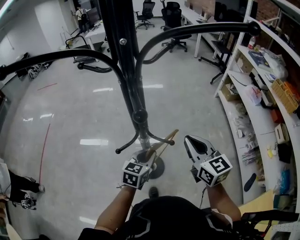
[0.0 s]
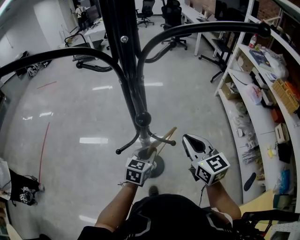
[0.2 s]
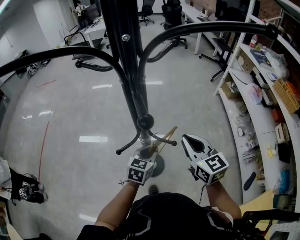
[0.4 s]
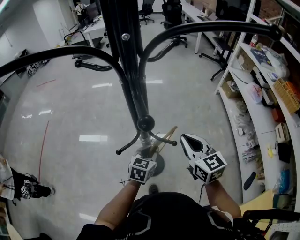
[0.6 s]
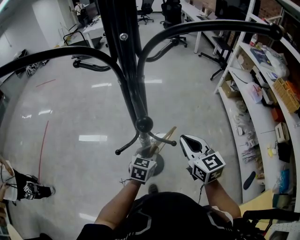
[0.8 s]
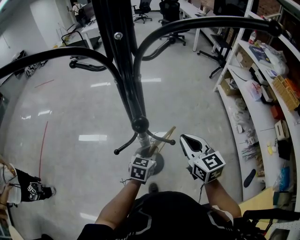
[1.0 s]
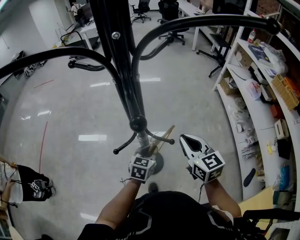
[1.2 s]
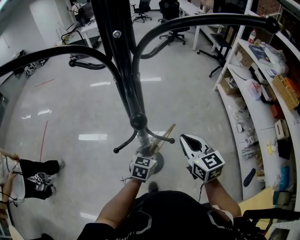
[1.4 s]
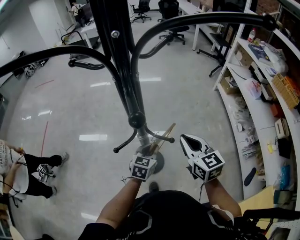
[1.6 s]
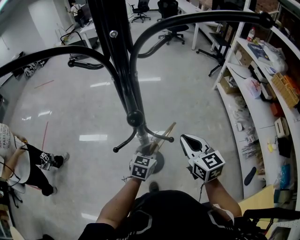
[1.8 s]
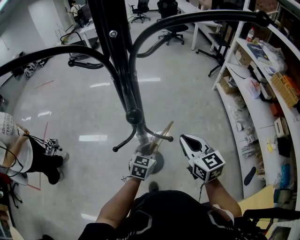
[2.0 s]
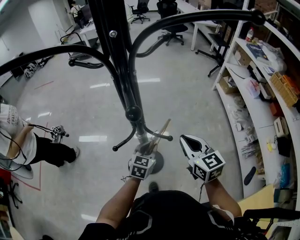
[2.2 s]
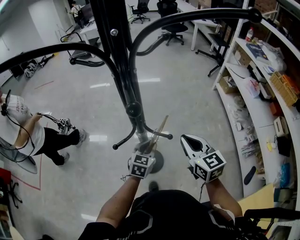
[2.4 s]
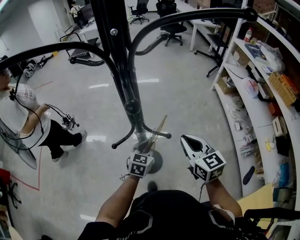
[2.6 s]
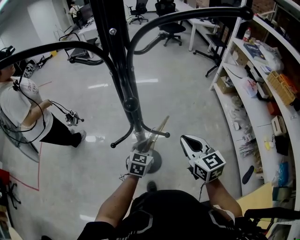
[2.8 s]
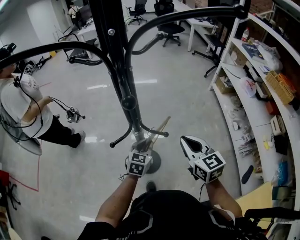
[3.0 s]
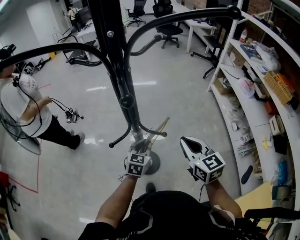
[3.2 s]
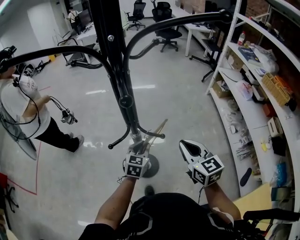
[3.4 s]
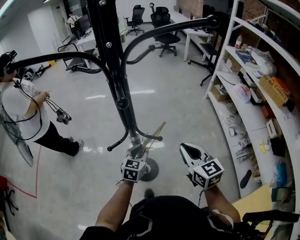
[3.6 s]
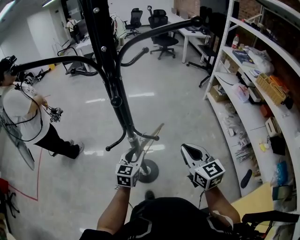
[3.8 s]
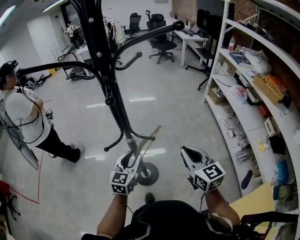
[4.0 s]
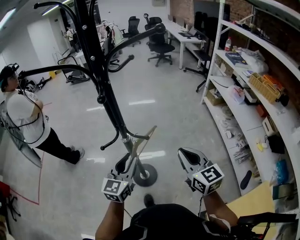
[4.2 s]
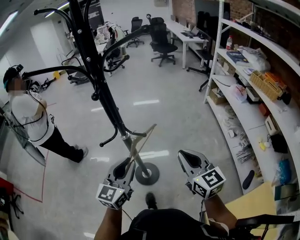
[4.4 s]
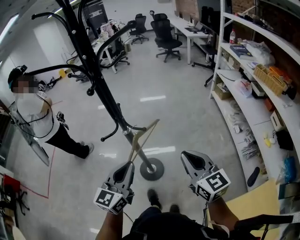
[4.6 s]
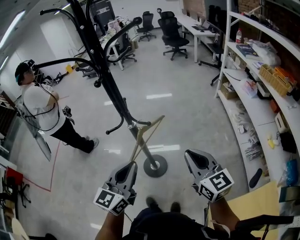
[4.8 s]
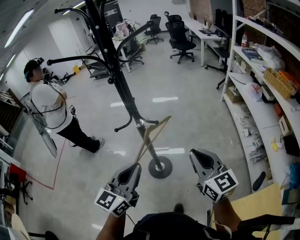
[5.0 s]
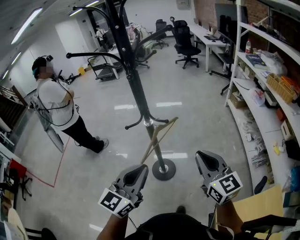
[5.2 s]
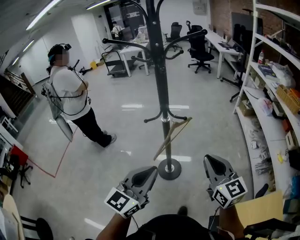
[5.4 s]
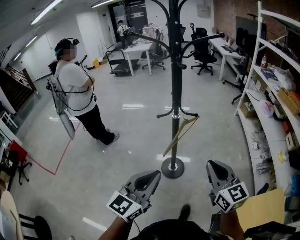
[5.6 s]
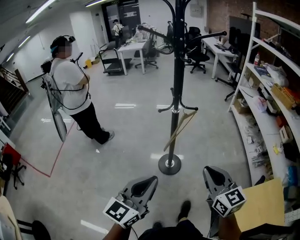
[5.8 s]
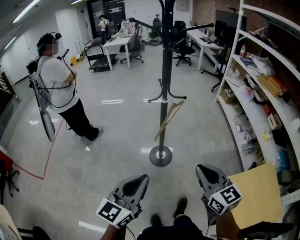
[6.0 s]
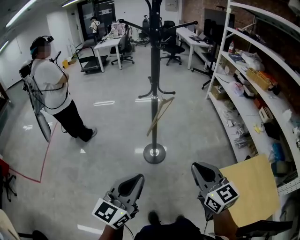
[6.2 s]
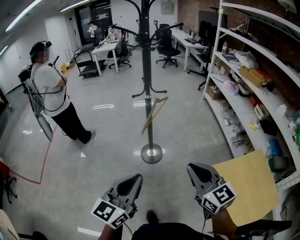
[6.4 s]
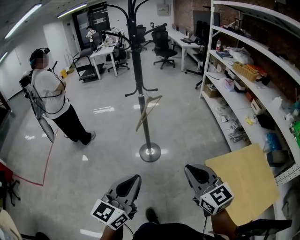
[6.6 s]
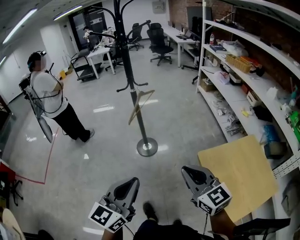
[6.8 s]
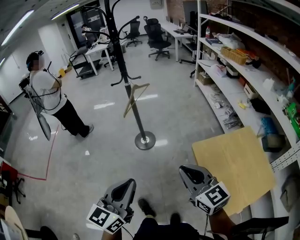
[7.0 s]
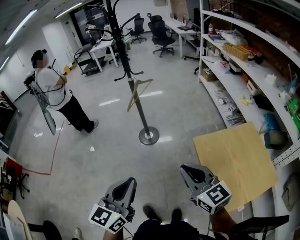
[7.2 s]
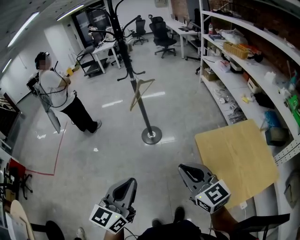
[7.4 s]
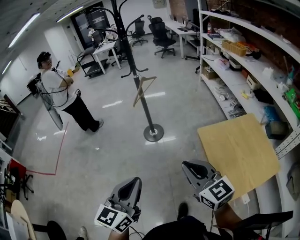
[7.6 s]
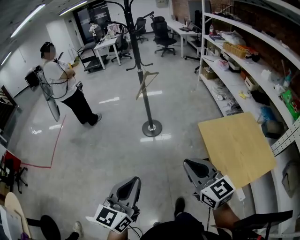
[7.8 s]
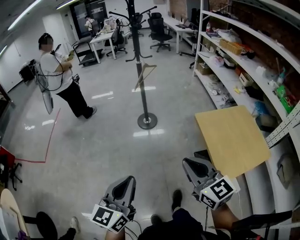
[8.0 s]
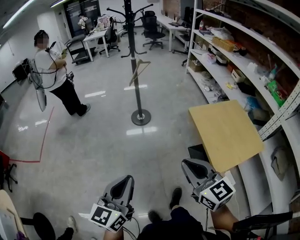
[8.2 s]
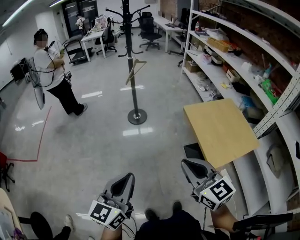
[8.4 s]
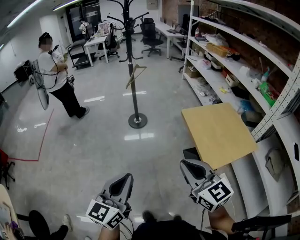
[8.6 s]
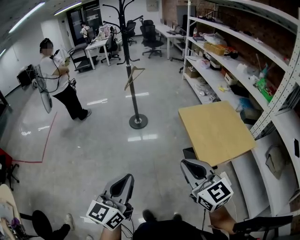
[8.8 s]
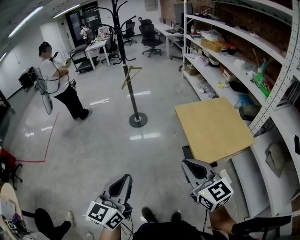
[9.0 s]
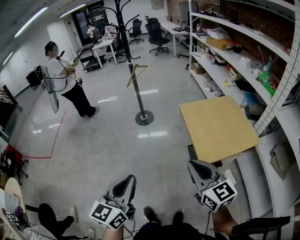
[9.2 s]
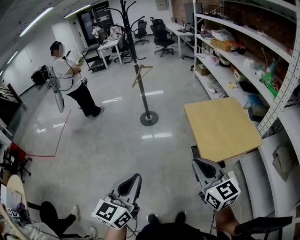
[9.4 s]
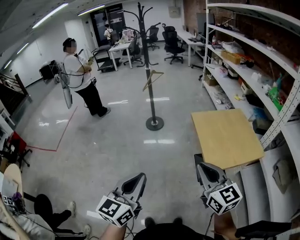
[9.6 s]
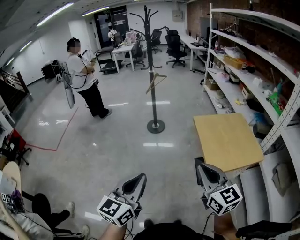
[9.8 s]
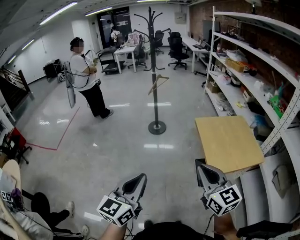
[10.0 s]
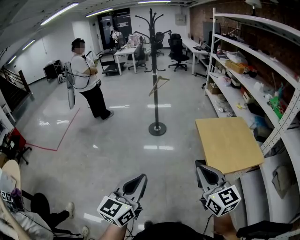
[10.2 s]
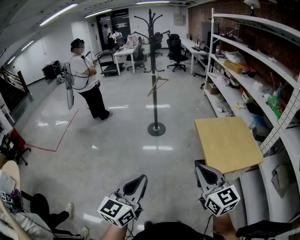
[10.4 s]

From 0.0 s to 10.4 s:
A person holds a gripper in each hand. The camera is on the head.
From 0.0 s to 1.4 s: The right gripper shifts by roughly 5 cm. The left gripper shifts some 5 cm downward.
From 1.4 s to 3.0 s: The grippers stay close to where they were, moving slightly.
From 3.0 s to 4.4 s: The left gripper heads upward and backward, covering some 25 cm, and turns by approximately 30 degrees; the right gripper heads backward, to the right and upward, covering some 15 cm.
From 4.4 s to 6.0 s: Both grippers travel together backward and to the left, about 35 cm.
From 6.0 s to 7.4 s: Both grippers travel together backward and to the right, approximately 35 cm.
From 7.4 s to 9.0 s: Both grippers move backward, some 30 cm.
From 9.0 s to 10.4 s: The right gripper changes place by about 5 cm. Meanwhile the left gripper shifts roughly 5 cm backward.

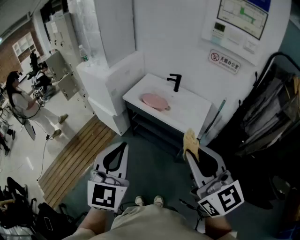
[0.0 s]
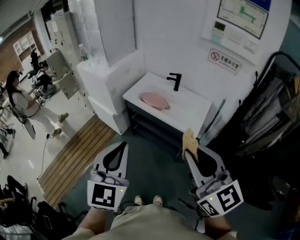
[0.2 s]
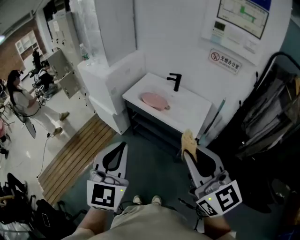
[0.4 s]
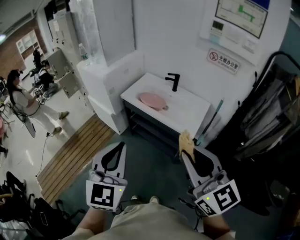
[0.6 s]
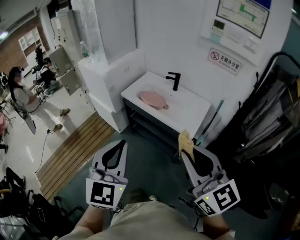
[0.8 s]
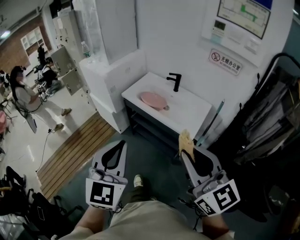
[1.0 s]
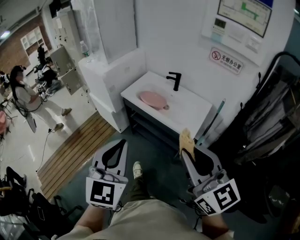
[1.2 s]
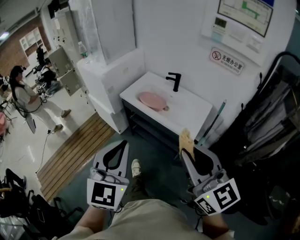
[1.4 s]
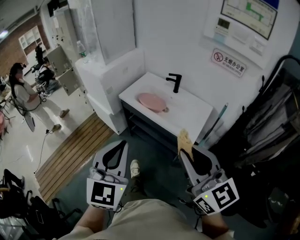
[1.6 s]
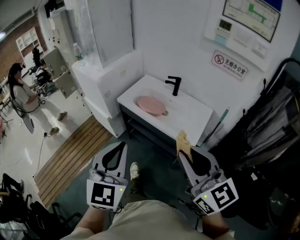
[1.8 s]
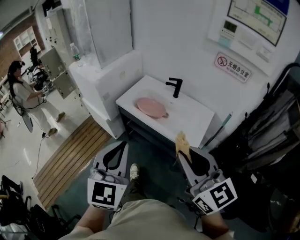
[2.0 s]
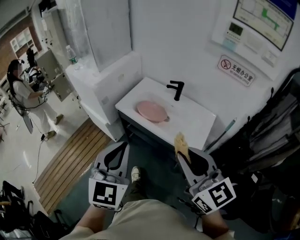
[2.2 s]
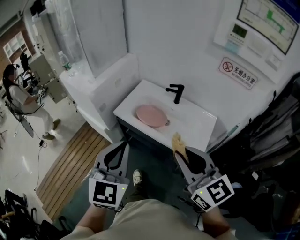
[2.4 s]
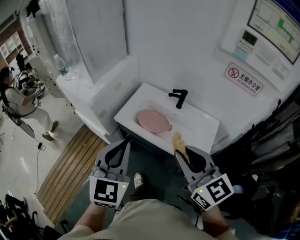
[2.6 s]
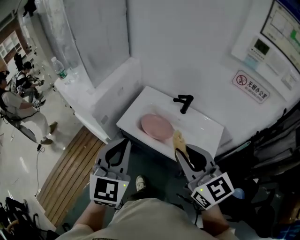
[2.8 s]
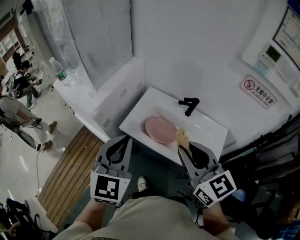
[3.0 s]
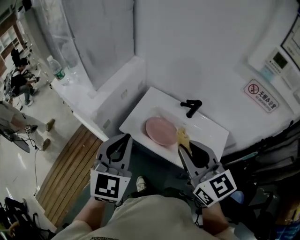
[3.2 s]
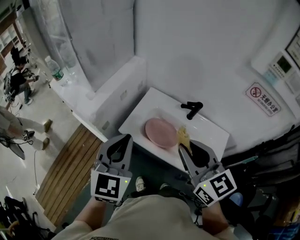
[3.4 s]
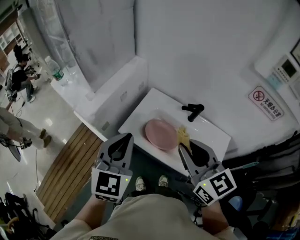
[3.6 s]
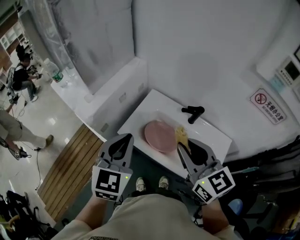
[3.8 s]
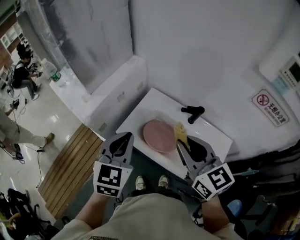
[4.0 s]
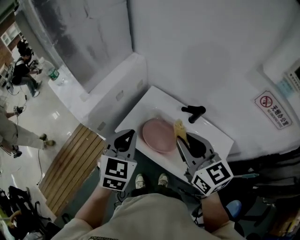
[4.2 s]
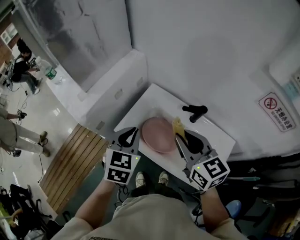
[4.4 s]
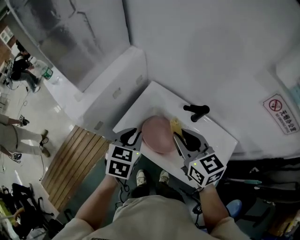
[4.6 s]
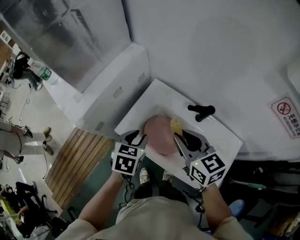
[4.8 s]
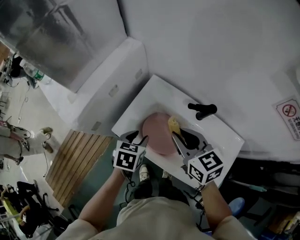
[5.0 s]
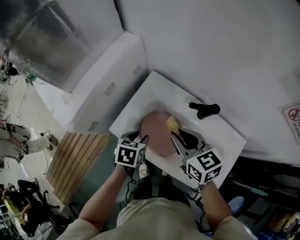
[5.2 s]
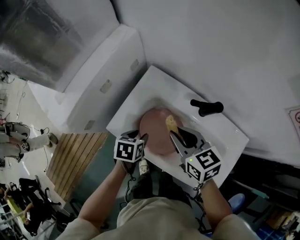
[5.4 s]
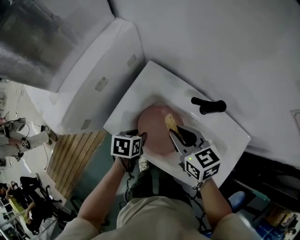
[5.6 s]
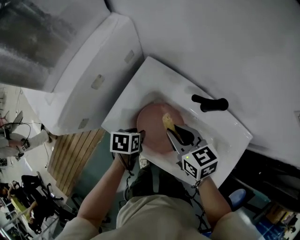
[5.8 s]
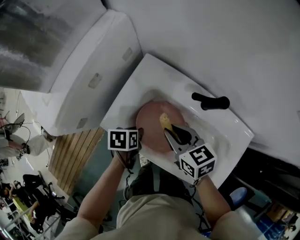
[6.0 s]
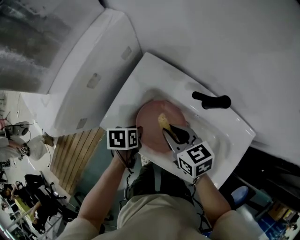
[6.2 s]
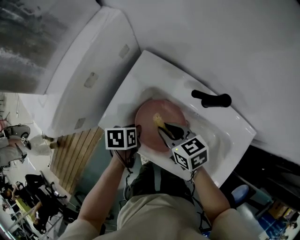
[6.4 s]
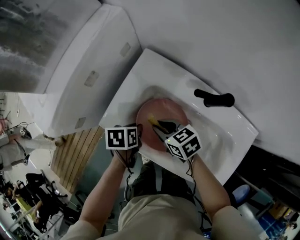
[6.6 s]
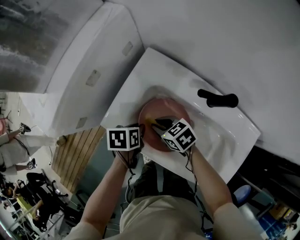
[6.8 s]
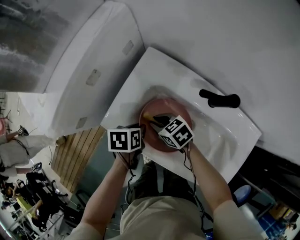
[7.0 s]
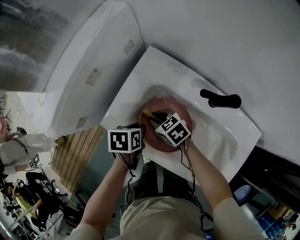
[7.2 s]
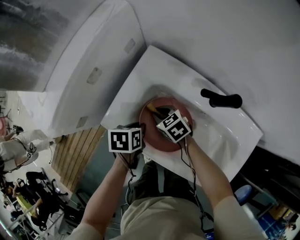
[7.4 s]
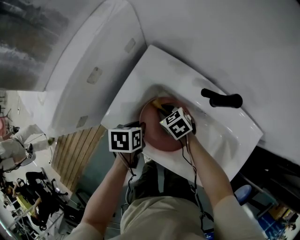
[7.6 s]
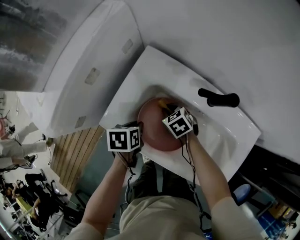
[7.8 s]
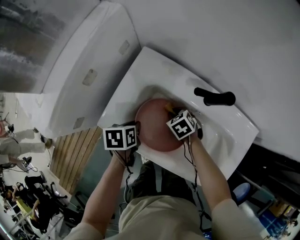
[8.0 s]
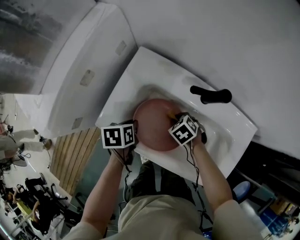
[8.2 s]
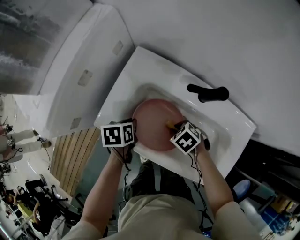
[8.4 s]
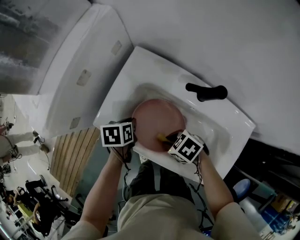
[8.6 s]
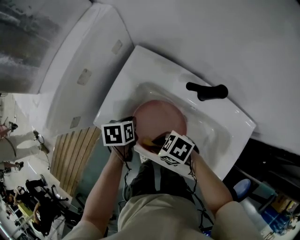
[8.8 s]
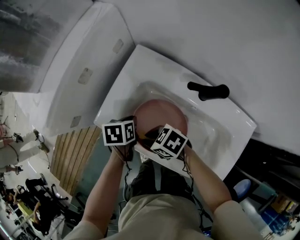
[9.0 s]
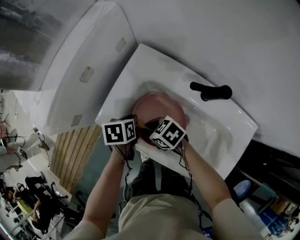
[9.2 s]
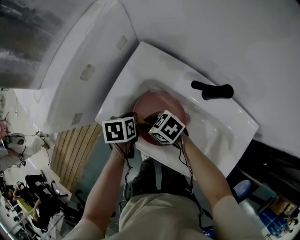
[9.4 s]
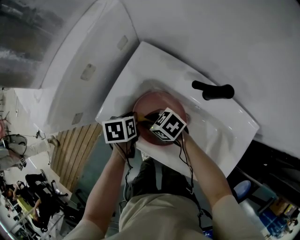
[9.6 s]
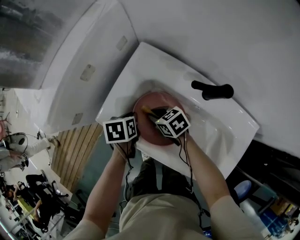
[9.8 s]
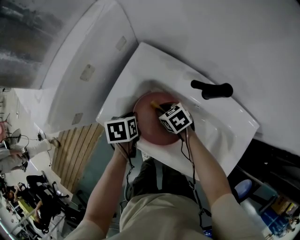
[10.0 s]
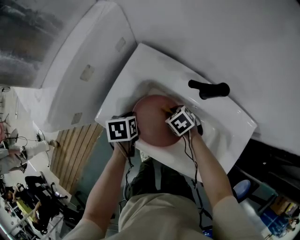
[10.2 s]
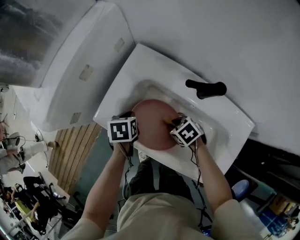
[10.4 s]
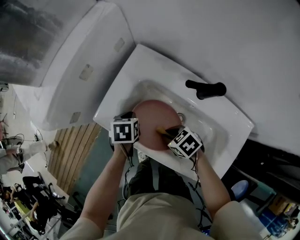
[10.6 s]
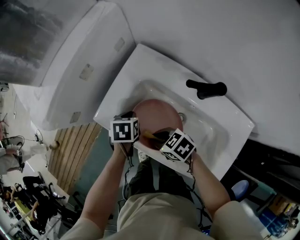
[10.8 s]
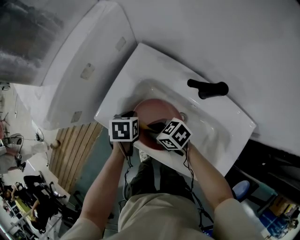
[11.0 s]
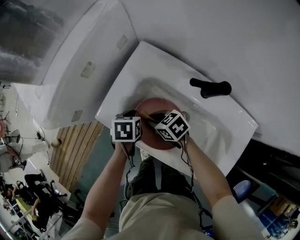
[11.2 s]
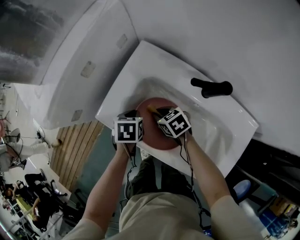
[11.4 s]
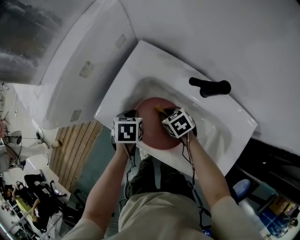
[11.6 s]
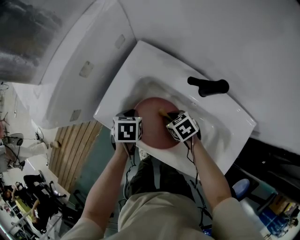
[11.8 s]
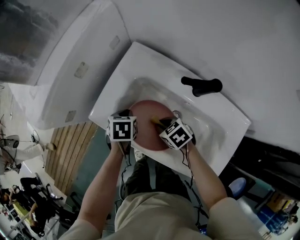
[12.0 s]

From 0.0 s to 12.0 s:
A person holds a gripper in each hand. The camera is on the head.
From 0.0 s to 1.6 s: The right gripper goes approximately 10 cm to the right, forward and downward. Meanwhile the left gripper shifts some 5 cm to the right.
From 1.6 s to 3.0 s: Both grippers move forward, some 35 cm.
From 3.0 s to 4.4 s: The right gripper heads forward and downward, covering about 20 cm. Meanwhile the left gripper goes about 20 cm forward, downward and to the right, and turns by approximately 20 degrees.
From 4.4 s to 6.0 s: The two grippers go some 25 cm downward. The right gripper turns by some 20 degrees, while the left gripper points its fingers about 30 degrees further downward, and opens its fingers.
From 6.0 s to 7.6 s: The right gripper goes roughly 20 cm downward, and changes its angle by roughly 30 degrees.
From 7.6 s to 9.0 s: The right gripper moves some 15 cm, and swivels about 30 degrees.
From 9.0 s to 10.4 s: The right gripper ends up approximately 15 cm from where it was, and changes its angle by some 30 degrees.
From 10.4 s to 12.0 s: The right gripper travels to the left and back again, about 10 cm each way.

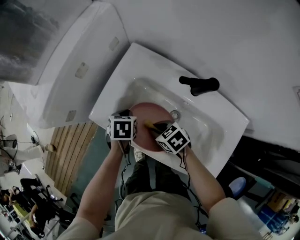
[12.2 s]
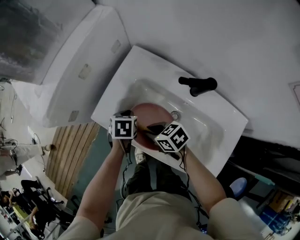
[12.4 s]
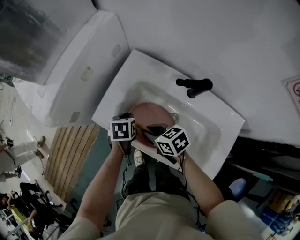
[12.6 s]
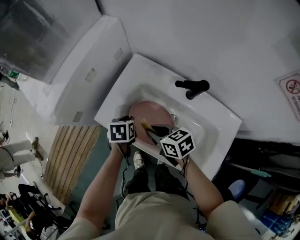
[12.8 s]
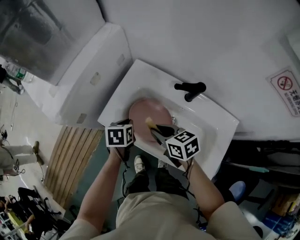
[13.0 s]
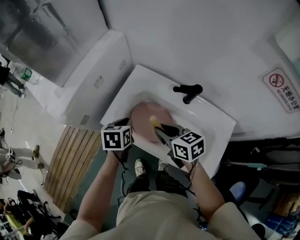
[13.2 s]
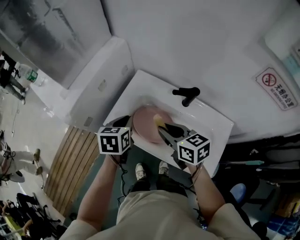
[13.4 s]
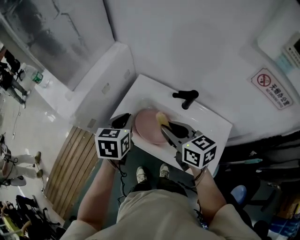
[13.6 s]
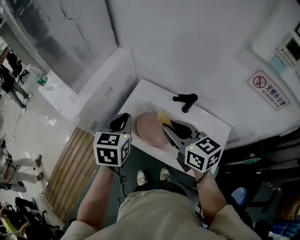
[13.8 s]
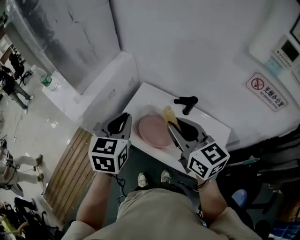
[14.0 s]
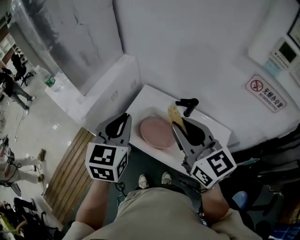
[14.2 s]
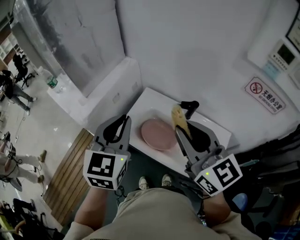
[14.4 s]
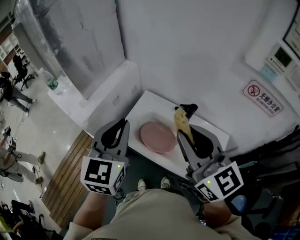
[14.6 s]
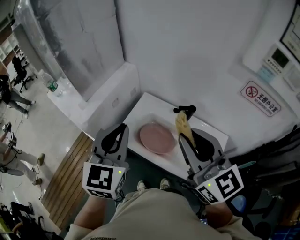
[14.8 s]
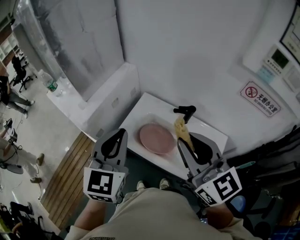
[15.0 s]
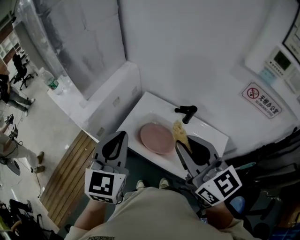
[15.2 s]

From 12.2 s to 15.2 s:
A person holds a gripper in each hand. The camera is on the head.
From 12.2 s to 13.8 s: Both grippers move upward, approximately 35 cm. The left gripper tips its fingers upward by roughly 40 degrees; the right gripper tips its fingers upward by approximately 30 degrees.
From 13.8 s to 15.2 s: The two grippers go roughly 15 cm upward and backward. The left gripper swivels about 20 degrees; the right gripper changes its angle by about 20 degrees.
